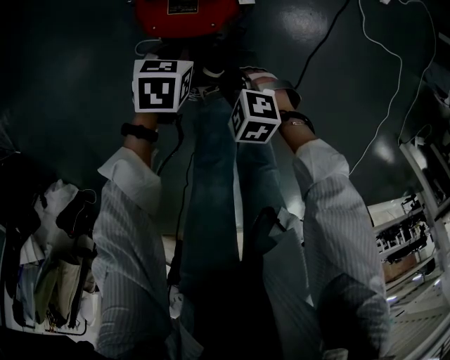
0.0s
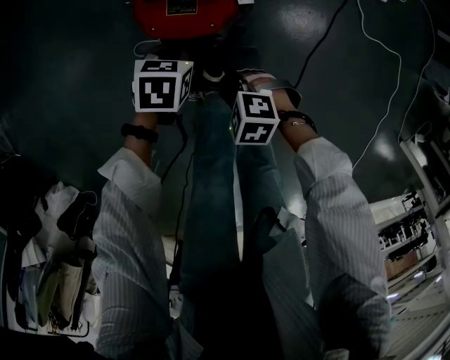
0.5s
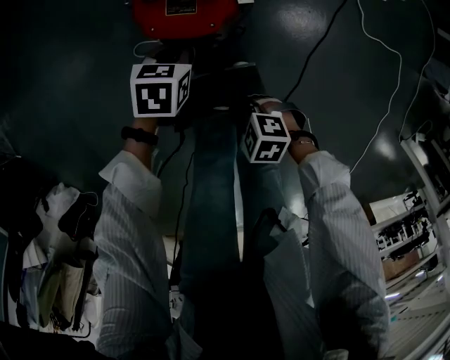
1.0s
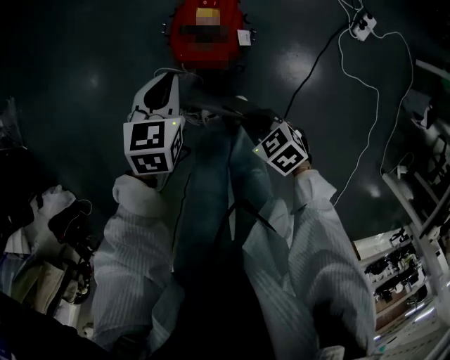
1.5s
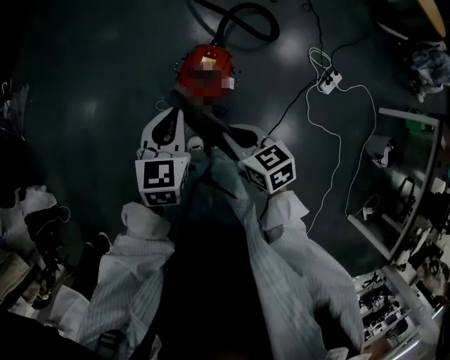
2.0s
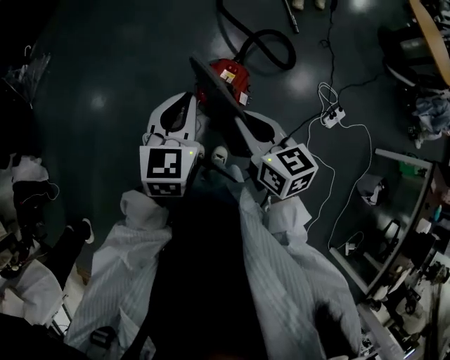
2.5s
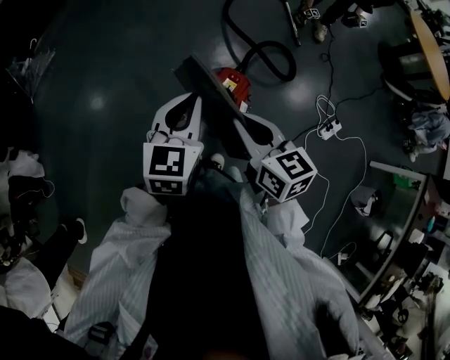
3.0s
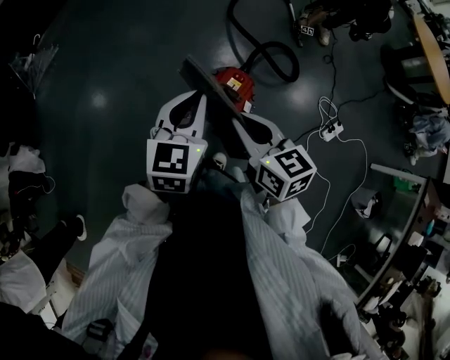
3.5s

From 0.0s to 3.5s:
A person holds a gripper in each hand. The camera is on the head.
From 0.0s to 2.0s: Both grippers move upward, approximately 50 cm. The right gripper swivels roughly 40 degrees. Meanwhile the left gripper tips its fingers upward by approximately 30 degrees.
From 2.0s to 3.5s: The two grippers go about 15 cm upward.

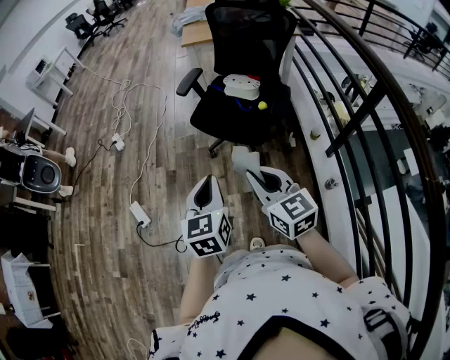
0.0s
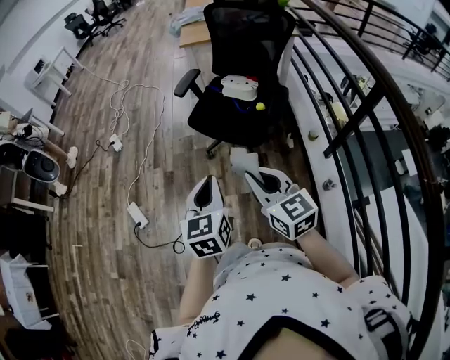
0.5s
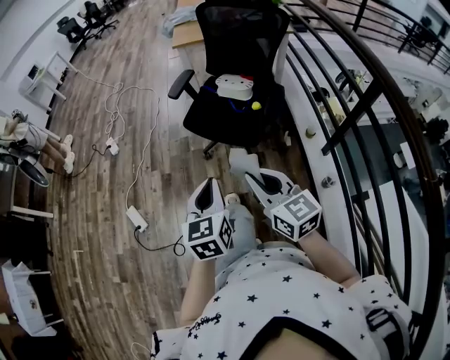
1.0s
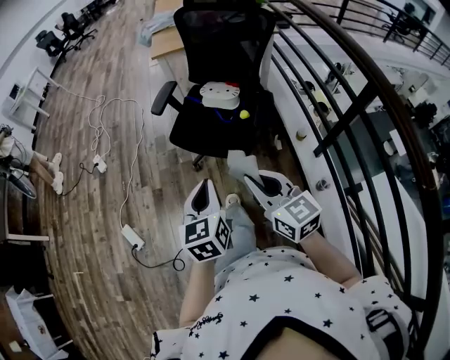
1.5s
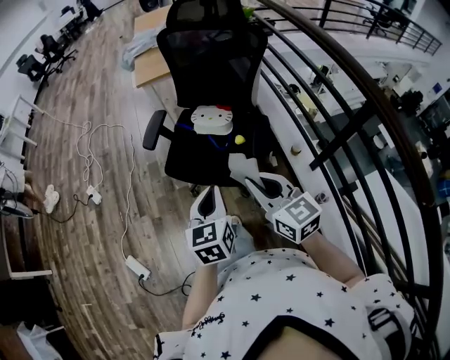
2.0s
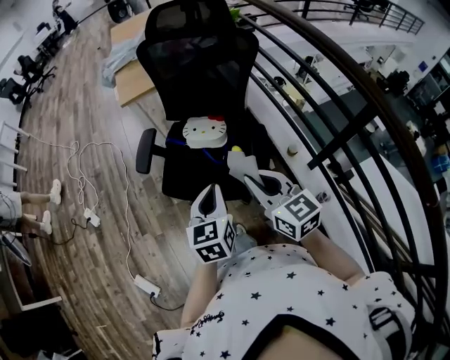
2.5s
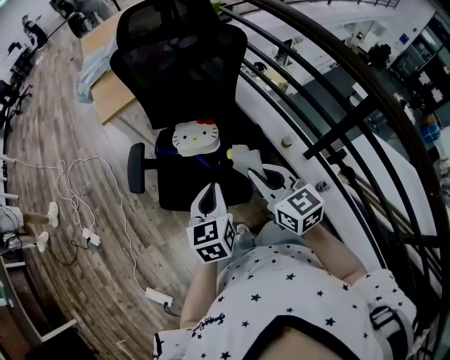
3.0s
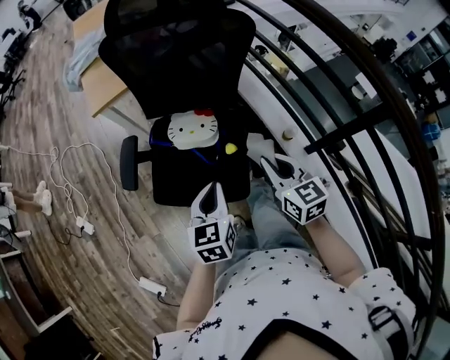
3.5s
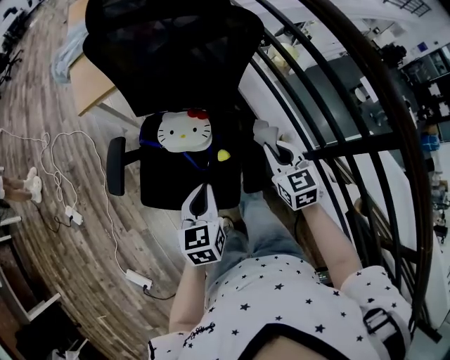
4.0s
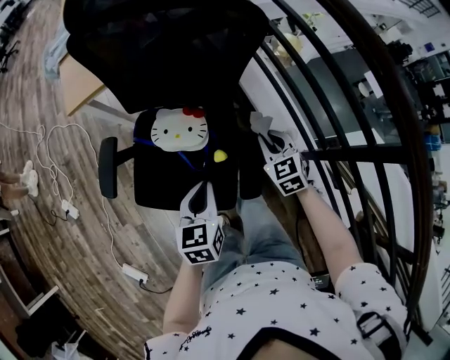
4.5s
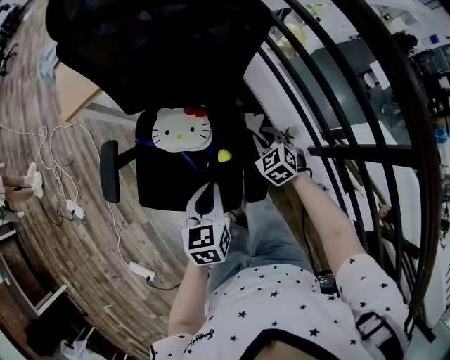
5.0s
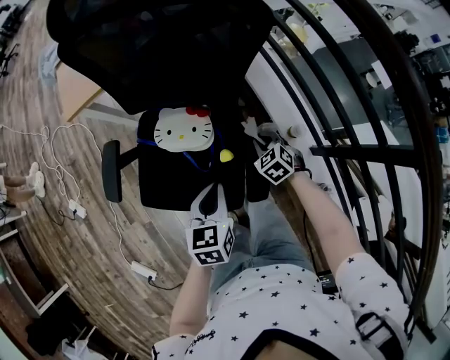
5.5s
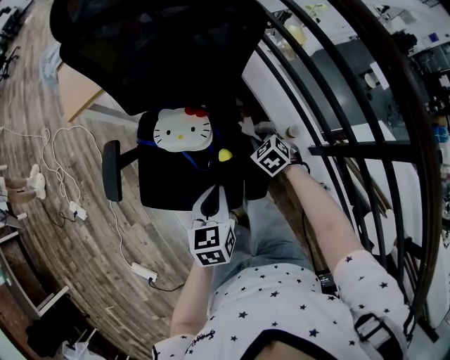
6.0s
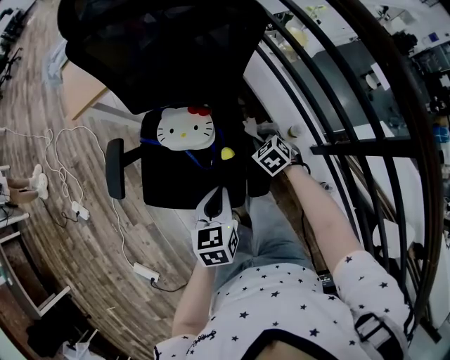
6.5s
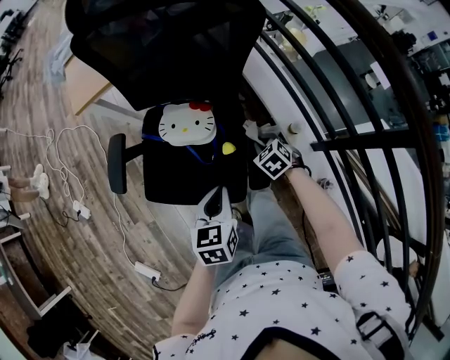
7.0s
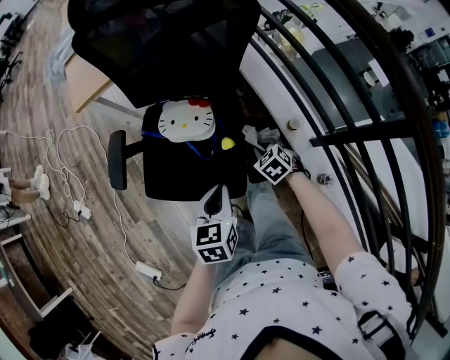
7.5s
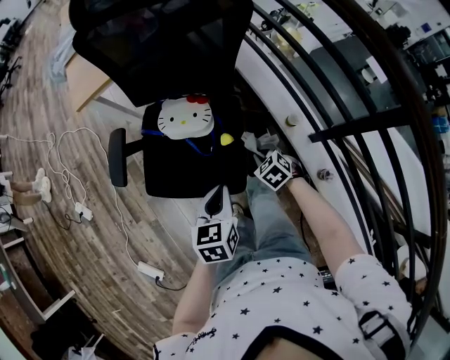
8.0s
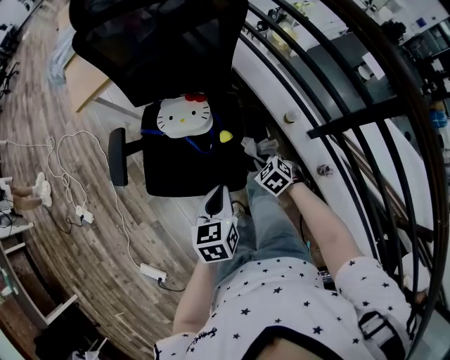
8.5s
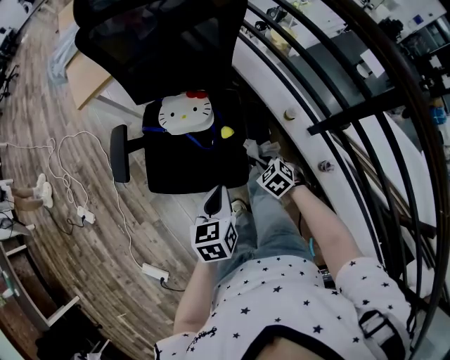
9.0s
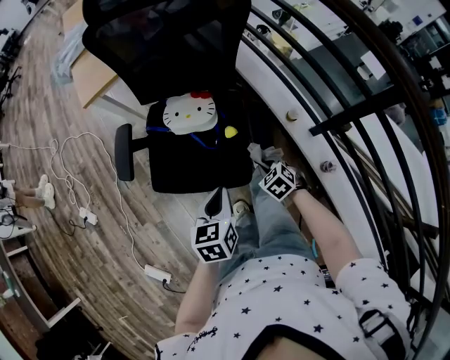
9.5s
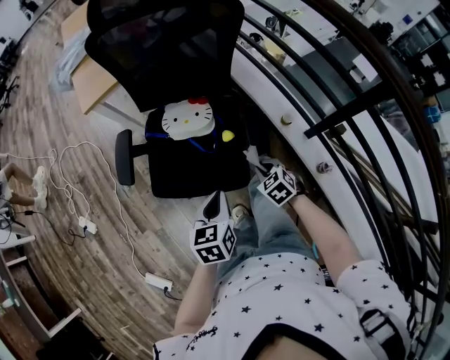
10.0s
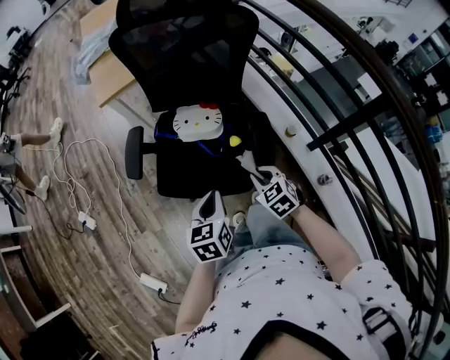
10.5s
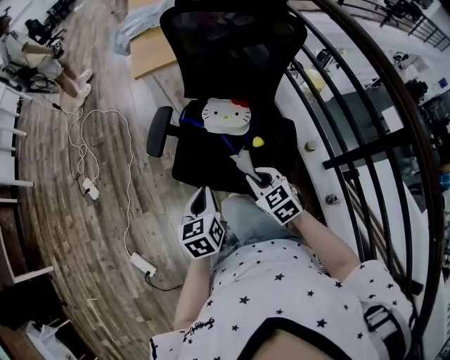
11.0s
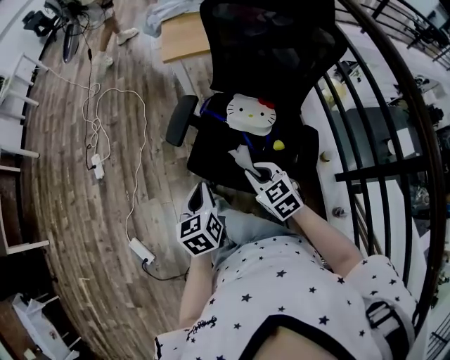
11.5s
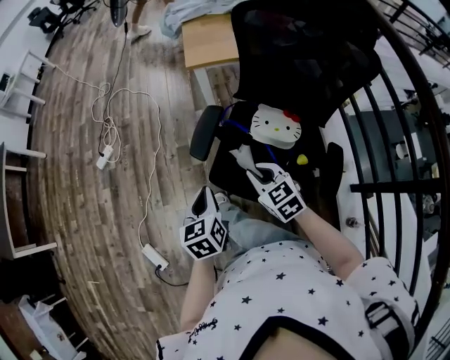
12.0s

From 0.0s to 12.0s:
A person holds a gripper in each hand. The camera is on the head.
From 0.0s to 2.0s: The grippers both shift forward and to the right by about 25 cm.
From 2.0s to 4.0s: The left gripper travels forward and downward by some 25 cm; the right gripper travels forward, to the right and downward by approximately 40 cm, and rotates about 30 degrees.
From 4.0s to 6.0s: The left gripper moves about 5 cm; the right gripper goes roughly 20 cm downward, and points its fingers approximately 30 degrees further downward.
From 6.0s to 8.0s: The right gripper travels backward by some 15 cm. Meanwhile the left gripper travels backward by approximately 10 cm.
From 8.0s to 10.0s: The left gripper heads to the left and backward, covering some 10 cm; the right gripper travels backward by roughly 10 cm.
From 10.0s to 12.0s: The right gripper changes place by roughly 35 cm, and swivels about 30 degrees, while the left gripper shifts by approximately 30 cm, and changes its angle by some 30 degrees.

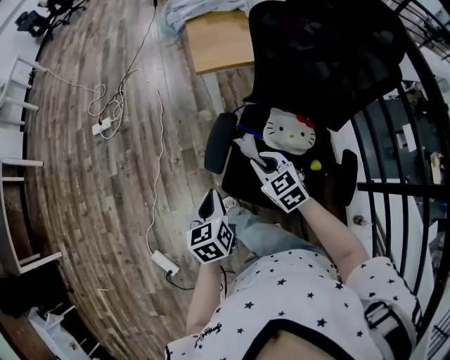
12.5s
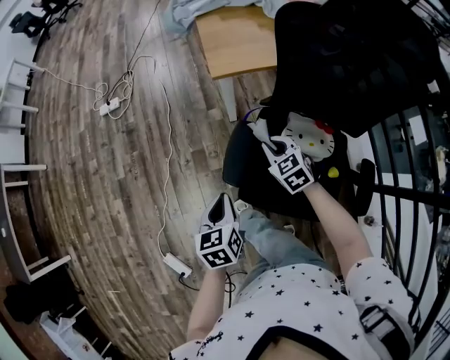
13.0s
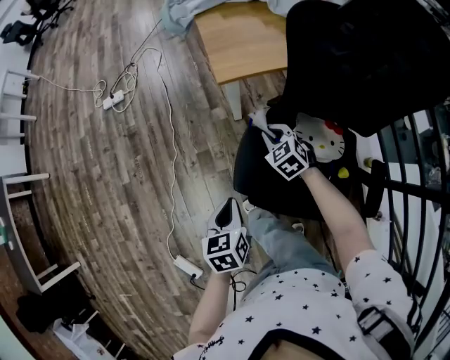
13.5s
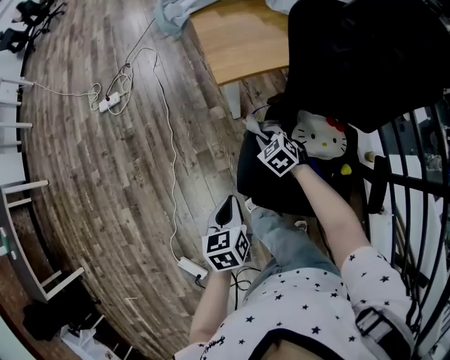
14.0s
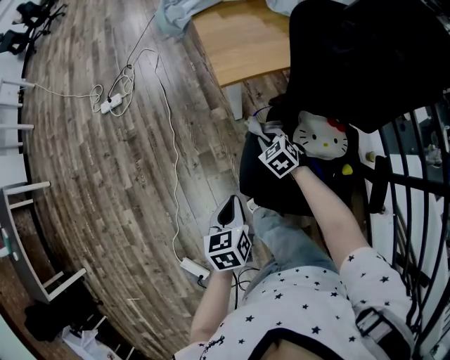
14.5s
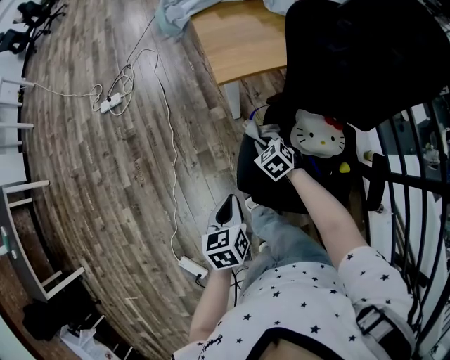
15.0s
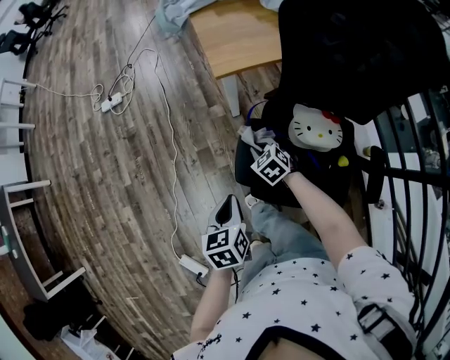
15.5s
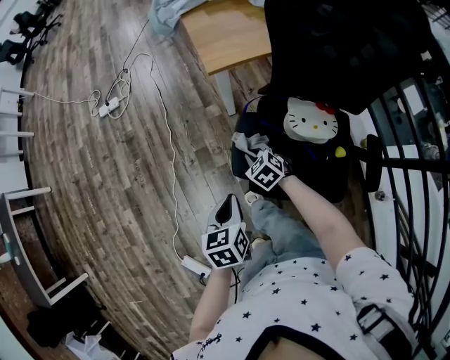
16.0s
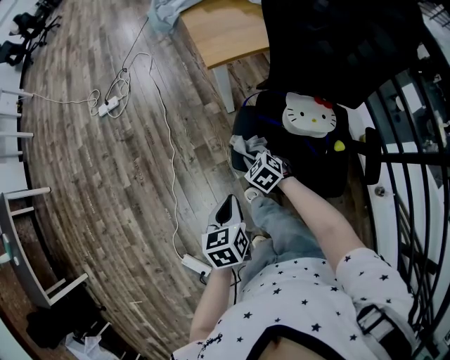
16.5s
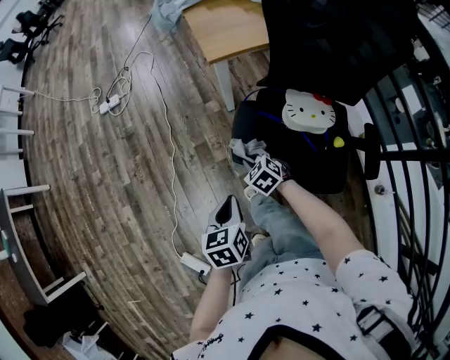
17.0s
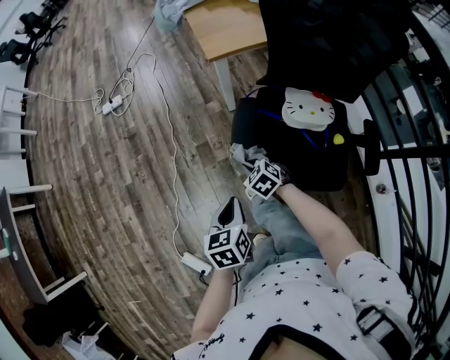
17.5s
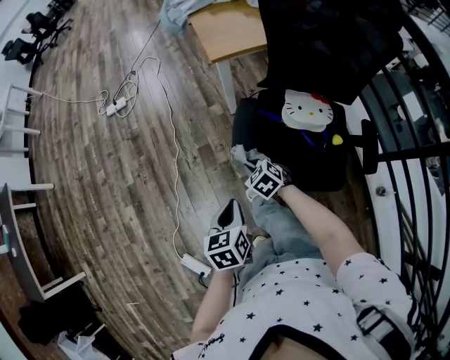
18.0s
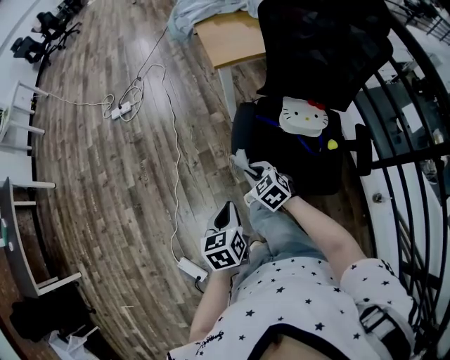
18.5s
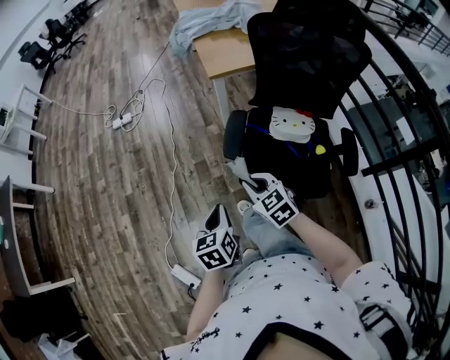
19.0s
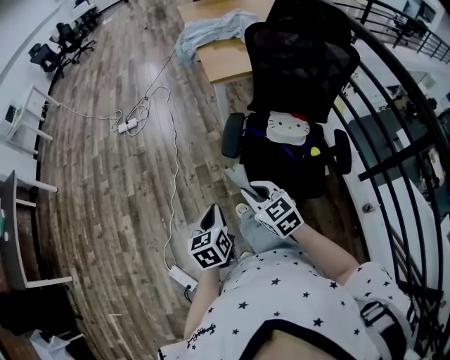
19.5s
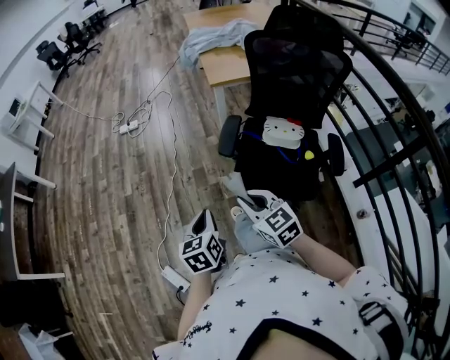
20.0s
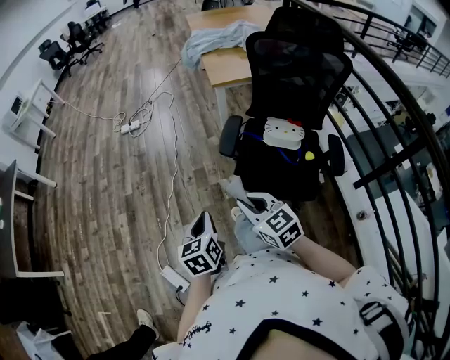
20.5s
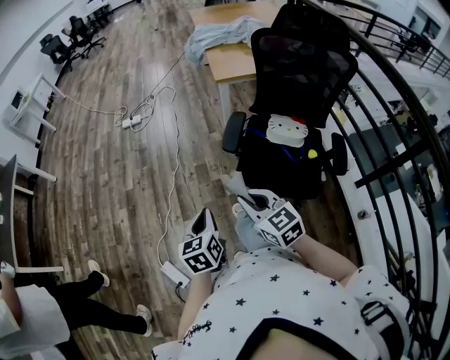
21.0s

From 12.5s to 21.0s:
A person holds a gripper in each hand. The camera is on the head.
From 12.5s to 14.5s: The left gripper is displaced forward by roughly 10 cm; the right gripper moves forward and downward, some 25 cm.
From 14.5s to 16.5s: The right gripper is displaced backward and to the left by about 15 cm. Meanwhile the left gripper shifts approximately 10 cm backward.
From 16.5s to 19.0s: The right gripper shifts roughly 25 cm upward and backward, and swivels about 20 degrees, while the left gripper moves backward and upward, about 15 cm.
From 19.0s to 21.0s: The left gripper travels backward and to the left by some 10 cm. Meanwhile the right gripper travels backward, upward and to the left by about 20 cm.

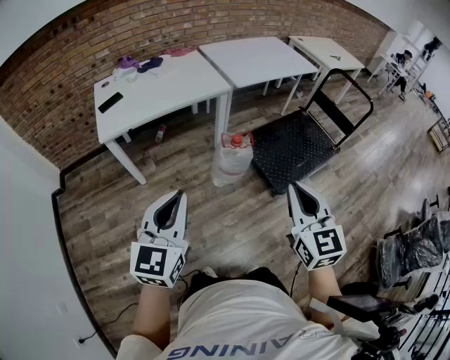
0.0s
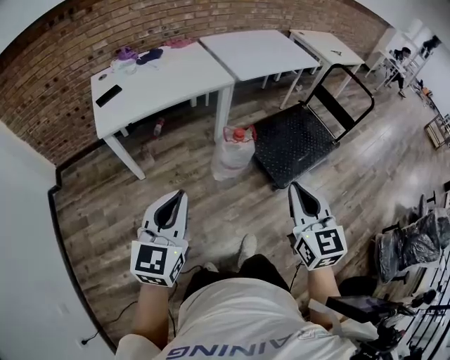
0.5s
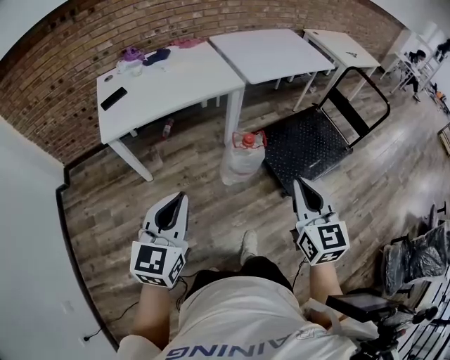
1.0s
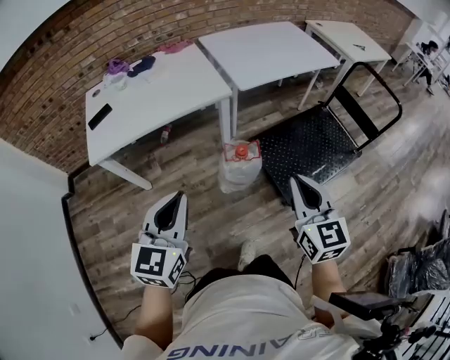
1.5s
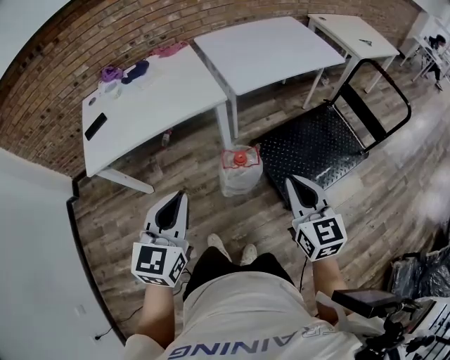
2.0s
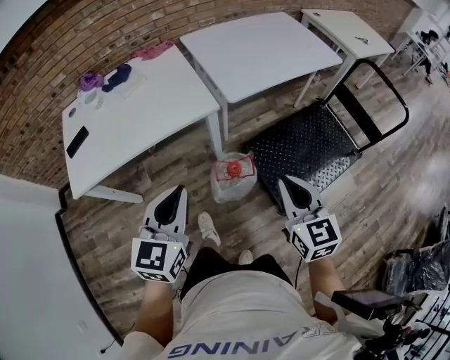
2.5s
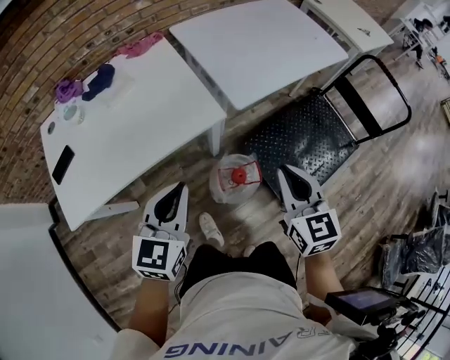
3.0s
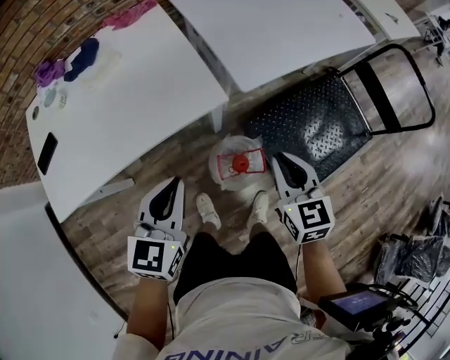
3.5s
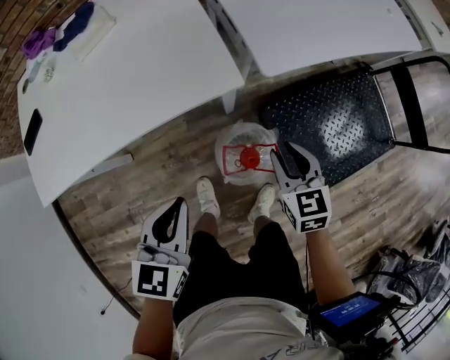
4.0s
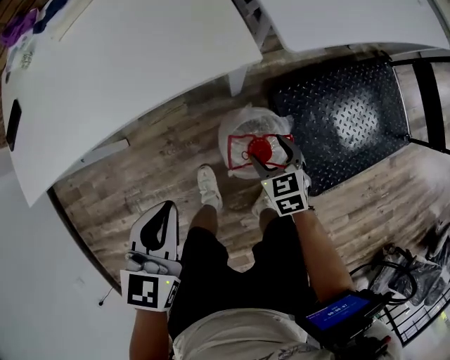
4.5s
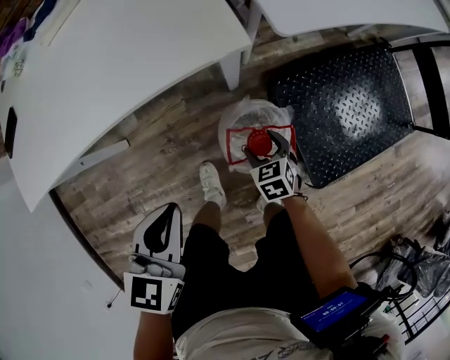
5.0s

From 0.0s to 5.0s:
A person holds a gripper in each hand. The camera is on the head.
From 0.0s to 2.5s: Both grippers move forward, some 35 cm.
From 2.5s to 5.0s: The left gripper goes about 25 cm downward, and rotates roughly 20 degrees. The right gripper is displaced downward by about 50 cm, angles its fingers downward, by some 40 degrees, and opens up.
